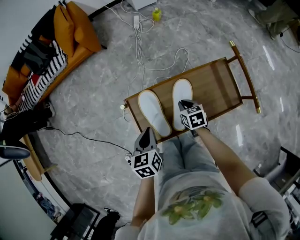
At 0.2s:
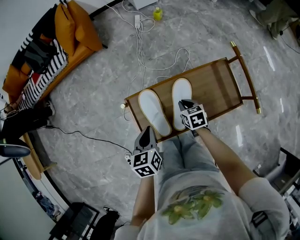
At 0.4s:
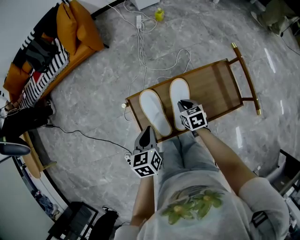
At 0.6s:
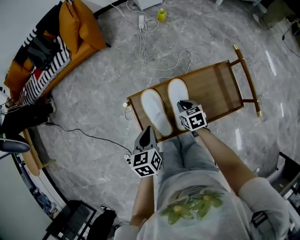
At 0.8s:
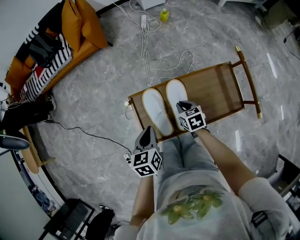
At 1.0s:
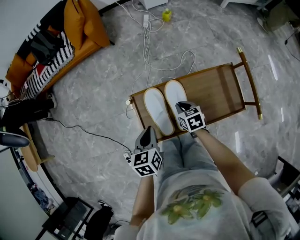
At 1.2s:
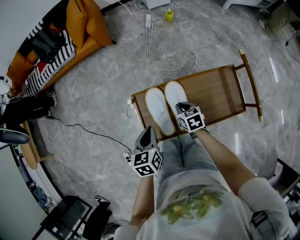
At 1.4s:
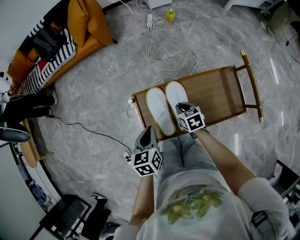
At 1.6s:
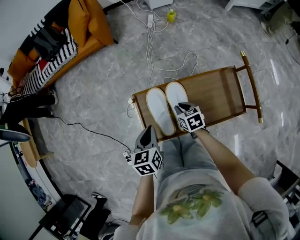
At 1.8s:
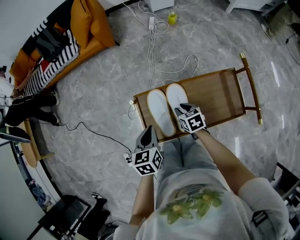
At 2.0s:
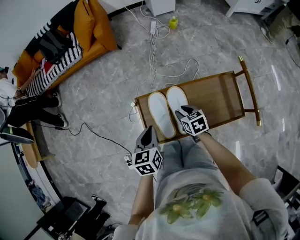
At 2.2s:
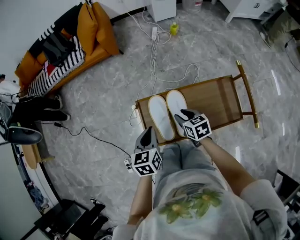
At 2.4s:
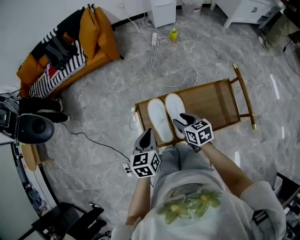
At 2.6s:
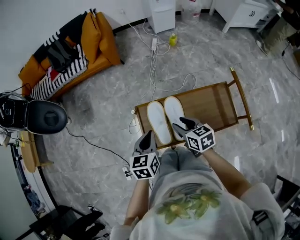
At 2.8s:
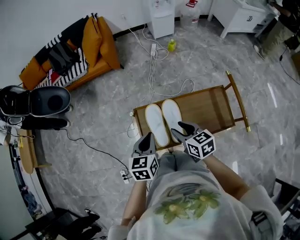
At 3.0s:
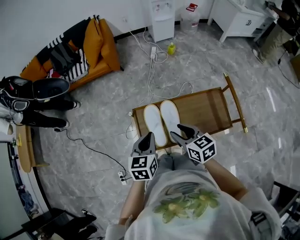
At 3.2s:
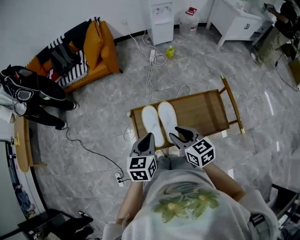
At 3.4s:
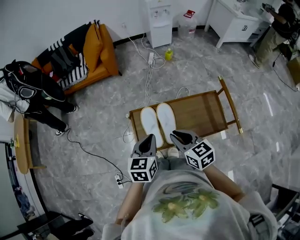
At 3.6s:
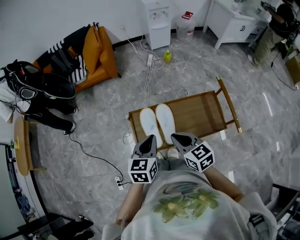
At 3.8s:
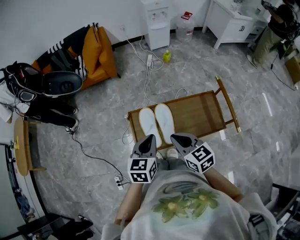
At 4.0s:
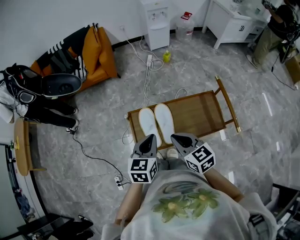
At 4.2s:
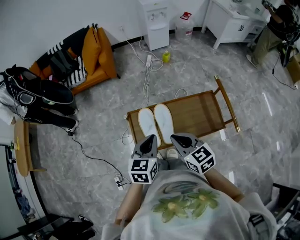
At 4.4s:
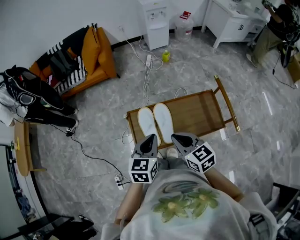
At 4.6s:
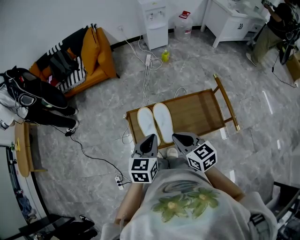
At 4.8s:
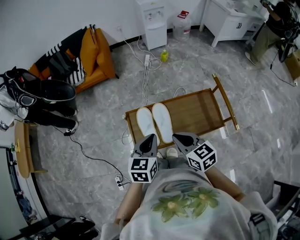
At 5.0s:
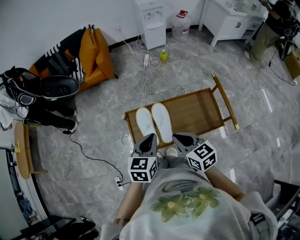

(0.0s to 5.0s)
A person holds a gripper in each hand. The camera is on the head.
0.0s - 1.6s: The right gripper is displaced to the left by approximately 5 cm.
1.6s - 3.4s: The left gripper travels upward and to the right by approximately 15 cm. Meanwhile the right gripper moves upward, about 25 cm, swivels approximately 30 degrees, and opens, then closes once more.
3.4s - 5.0s: The grippers move only a little.

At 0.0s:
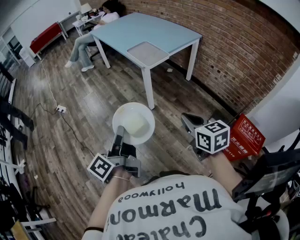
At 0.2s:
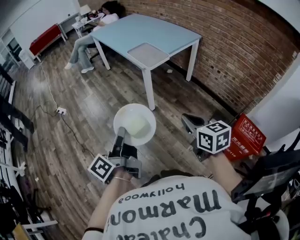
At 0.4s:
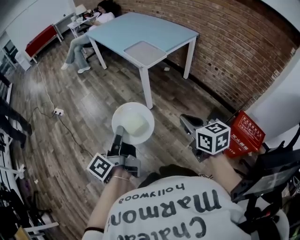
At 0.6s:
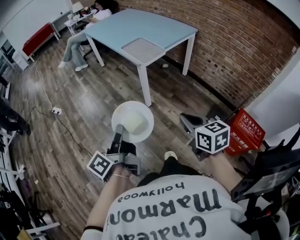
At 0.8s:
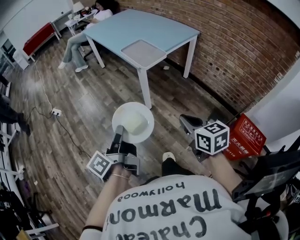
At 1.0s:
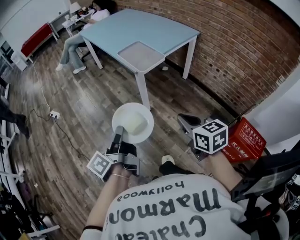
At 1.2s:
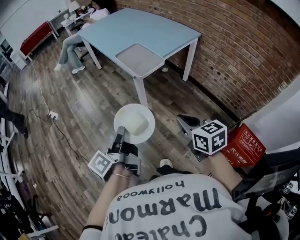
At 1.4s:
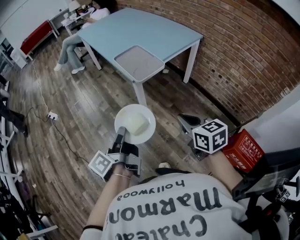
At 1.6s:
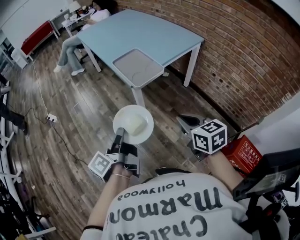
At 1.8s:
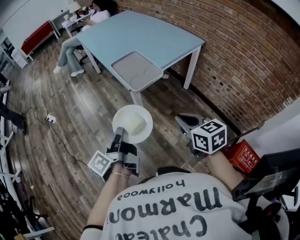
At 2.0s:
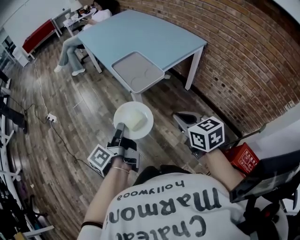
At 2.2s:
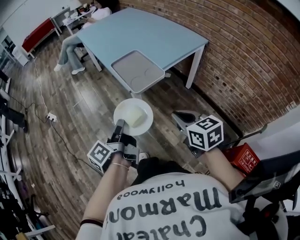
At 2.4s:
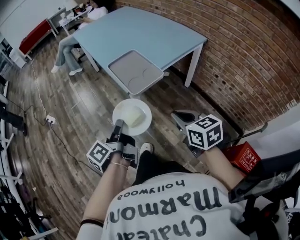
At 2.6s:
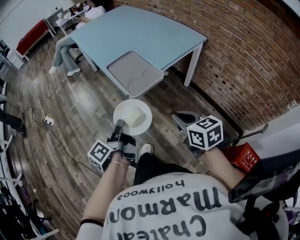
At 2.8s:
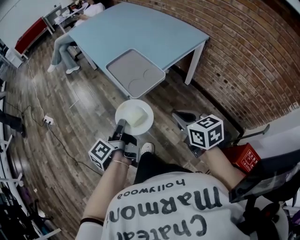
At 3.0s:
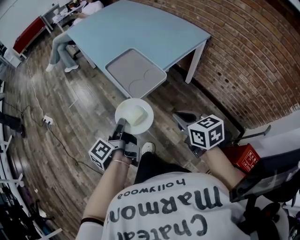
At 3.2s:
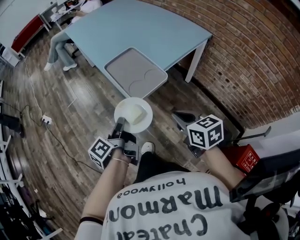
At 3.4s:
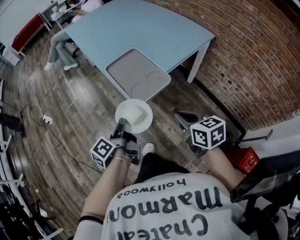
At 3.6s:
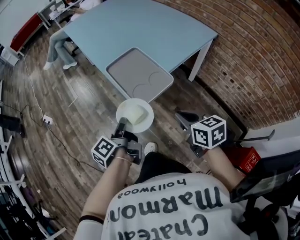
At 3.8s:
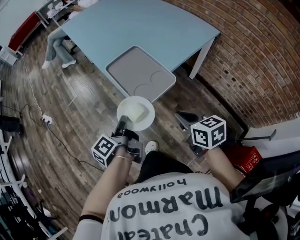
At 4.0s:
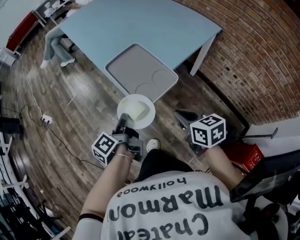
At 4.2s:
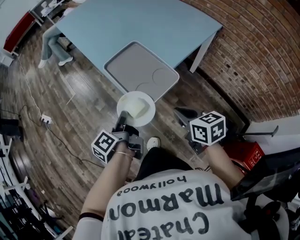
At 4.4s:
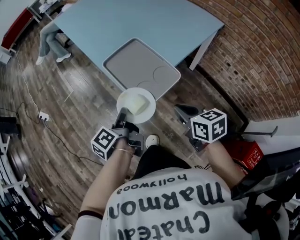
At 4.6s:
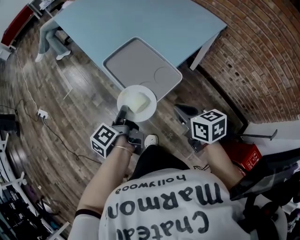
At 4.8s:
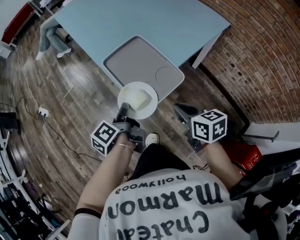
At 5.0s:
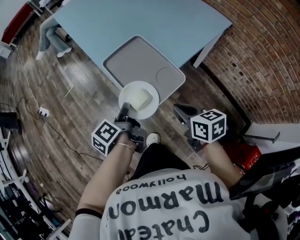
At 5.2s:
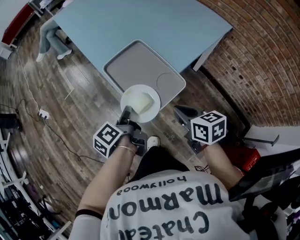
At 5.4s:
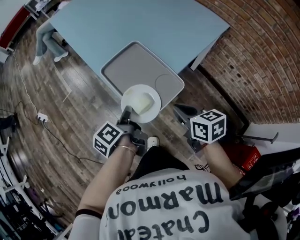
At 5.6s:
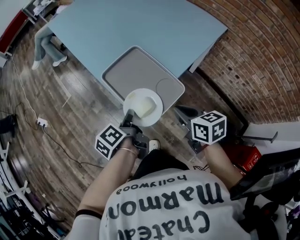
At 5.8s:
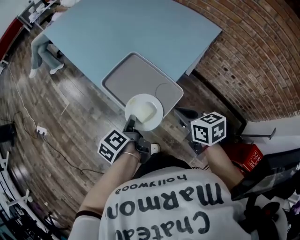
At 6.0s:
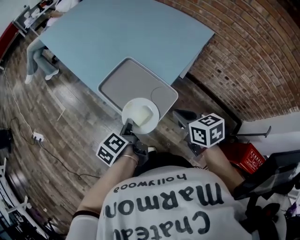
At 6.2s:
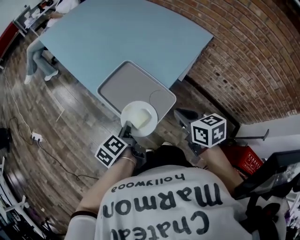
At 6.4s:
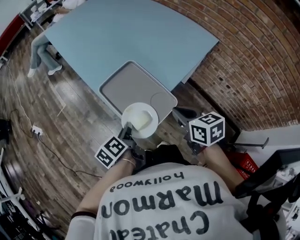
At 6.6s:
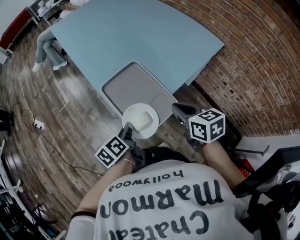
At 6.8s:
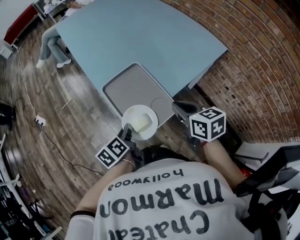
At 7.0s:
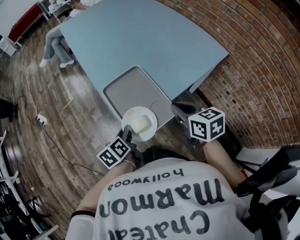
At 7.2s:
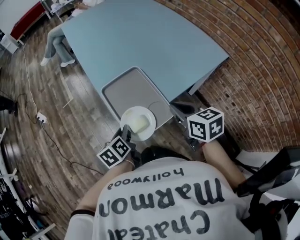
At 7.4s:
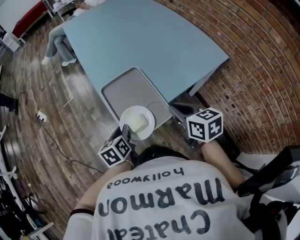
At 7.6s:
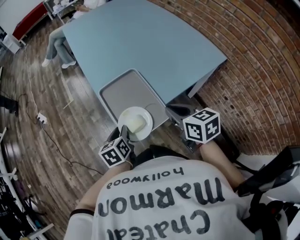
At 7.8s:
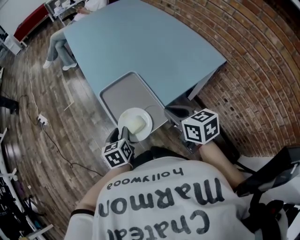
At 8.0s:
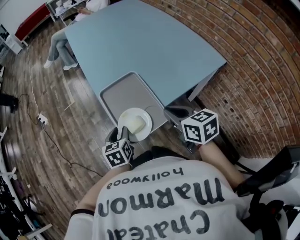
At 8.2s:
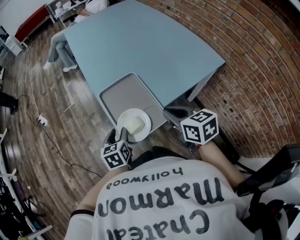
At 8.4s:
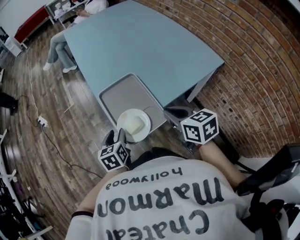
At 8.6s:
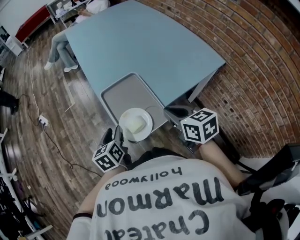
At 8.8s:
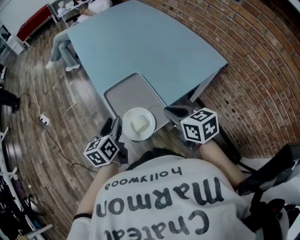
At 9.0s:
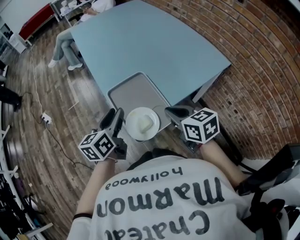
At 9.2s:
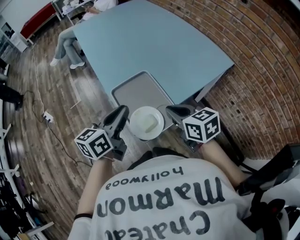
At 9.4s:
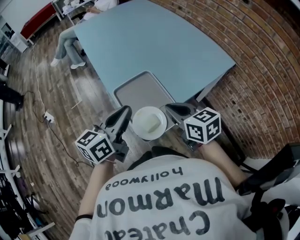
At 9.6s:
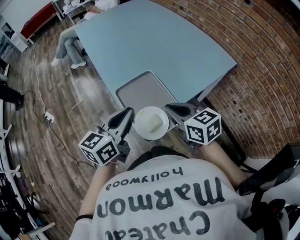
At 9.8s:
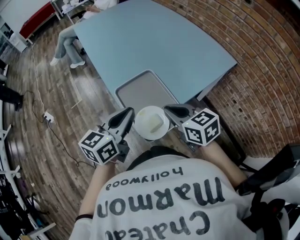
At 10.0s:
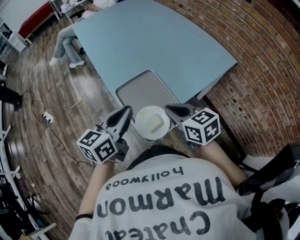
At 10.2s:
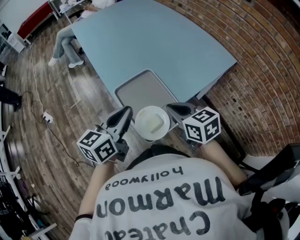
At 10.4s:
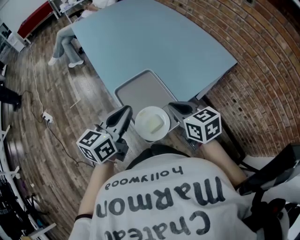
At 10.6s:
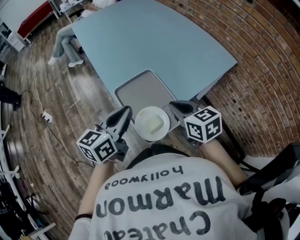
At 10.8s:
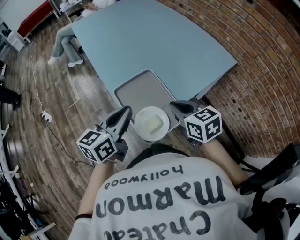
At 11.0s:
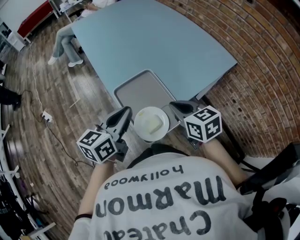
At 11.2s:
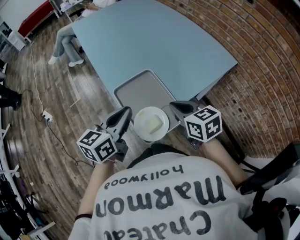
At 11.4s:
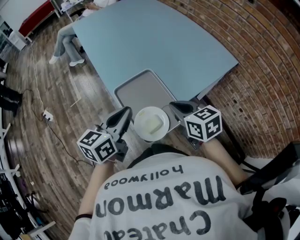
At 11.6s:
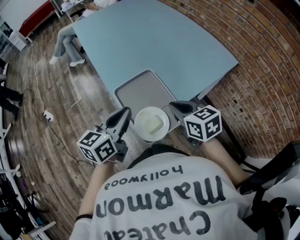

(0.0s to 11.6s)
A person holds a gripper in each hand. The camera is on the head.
0.0s - 1.4s: Both grippers move forward and to the right, roughly 20 cm.
1.4s - 2.8s: Both grippers move forward, about 15 cm.
2.8s - 4.4s: Both grippers move forward and downward, roughly 15 cm.
4.4s - 5.8s: The two grippers go approximately 5 cm forward.
5.8s - 7.2s: The right gripper is displaced forward and upward by roughly 10 cm. Meanwhile the left gripper changes its angle by approximately 30 degrees.
7.2s - 8.8s: The left gripper goes roughly 10 cm upward, turns by approximately 20 degrees, and opens up.
8.8s - 10.2s: The left gripper is displaced upward by roughly 10 cm, changes its angle by approximately 30 degrees, and closes up. Meanwhile the right gripper goes some 5 cm to the left.
10.2s - 11.6s: The grippers stay close to where they were, moving slightly.

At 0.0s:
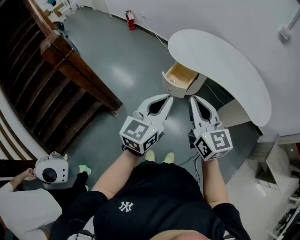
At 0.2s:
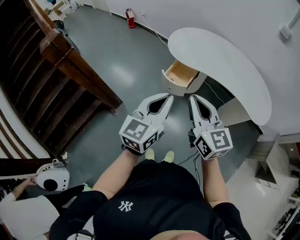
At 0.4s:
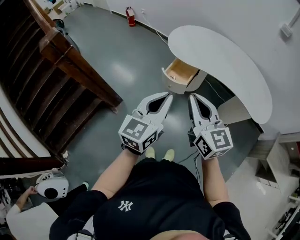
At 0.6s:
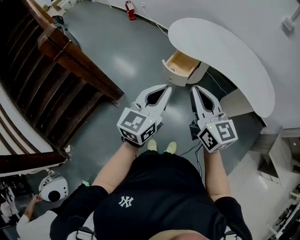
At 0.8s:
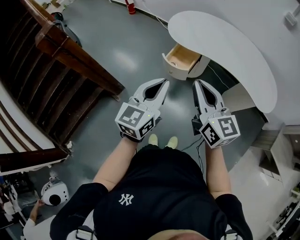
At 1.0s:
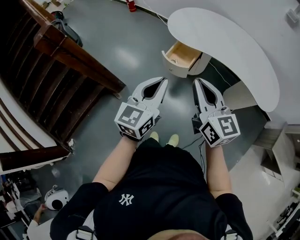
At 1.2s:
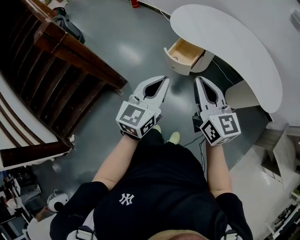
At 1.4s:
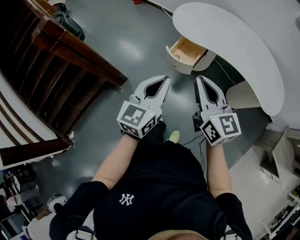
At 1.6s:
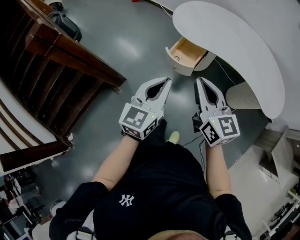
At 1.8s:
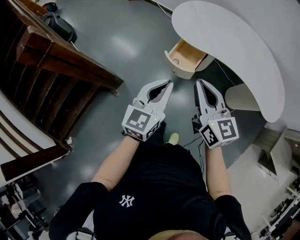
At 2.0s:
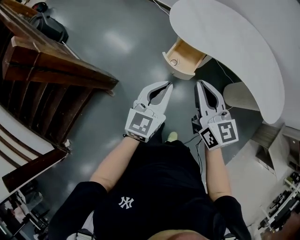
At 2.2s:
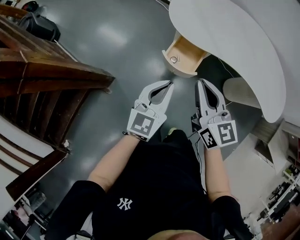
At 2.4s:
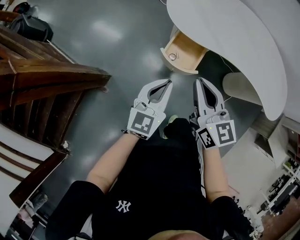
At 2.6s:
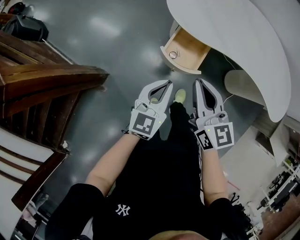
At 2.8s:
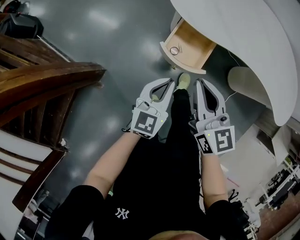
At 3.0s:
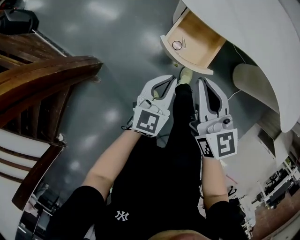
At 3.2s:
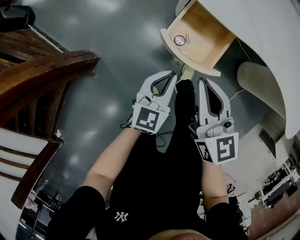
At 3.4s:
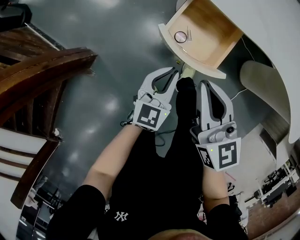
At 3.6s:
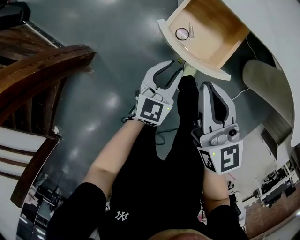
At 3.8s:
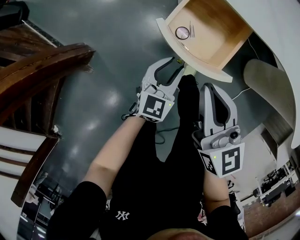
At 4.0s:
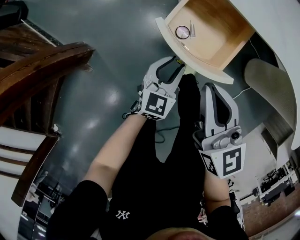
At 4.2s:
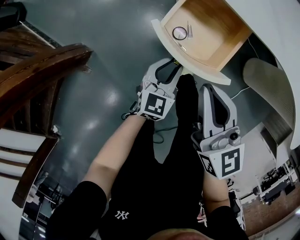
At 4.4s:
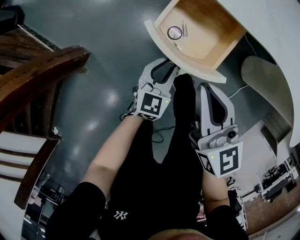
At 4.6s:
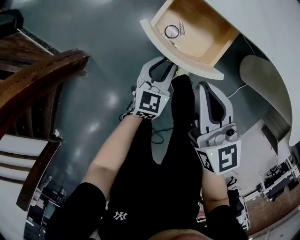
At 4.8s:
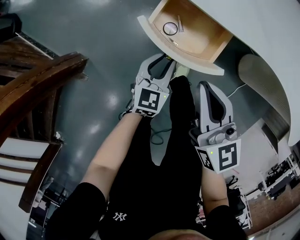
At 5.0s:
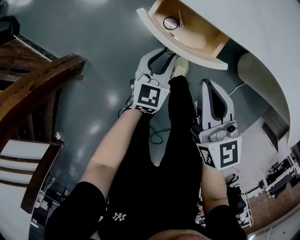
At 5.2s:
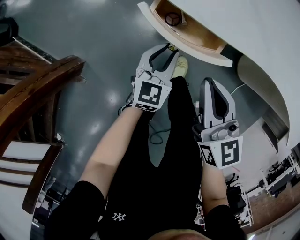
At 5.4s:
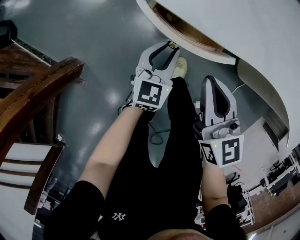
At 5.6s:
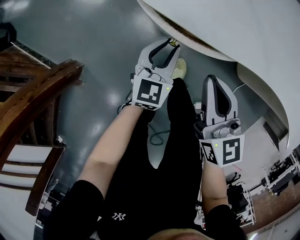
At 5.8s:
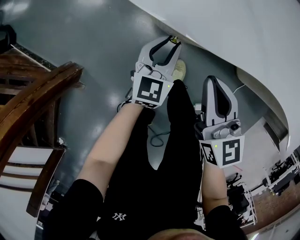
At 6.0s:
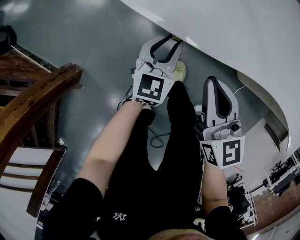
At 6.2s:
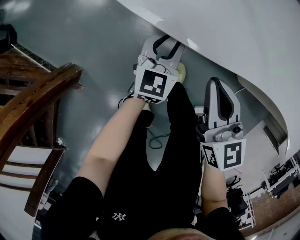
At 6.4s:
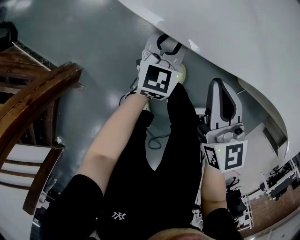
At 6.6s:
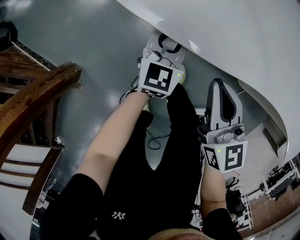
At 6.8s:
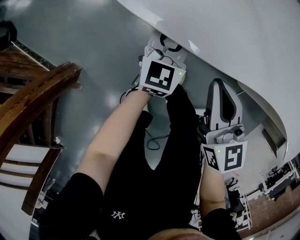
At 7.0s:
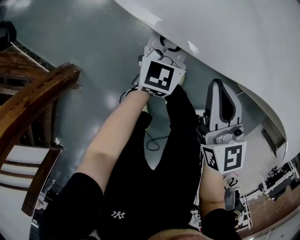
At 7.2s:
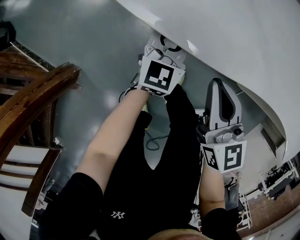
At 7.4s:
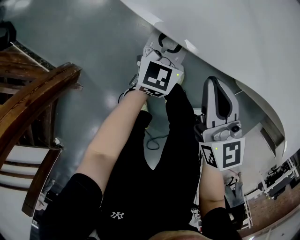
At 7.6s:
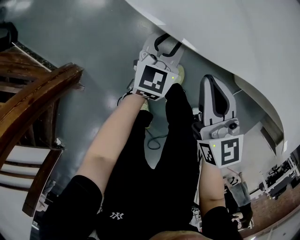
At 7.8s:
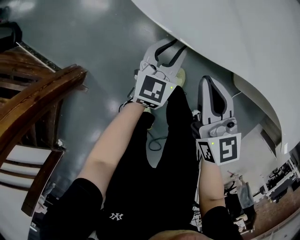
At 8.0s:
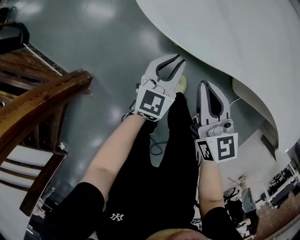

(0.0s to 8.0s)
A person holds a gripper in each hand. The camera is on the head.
0.0s - 1.6s: The right gripper shifts roughly 10 cm forward and downward, while the left gripper is displaced downward and forward by some 10 cm.
1.6s - 3.2s: Both grippers move downward and forward, some 40 cm.
3.2s - 4.8s: The right gripper travels downward and to the right by about 10 cm. Meanwhile the left gripper travels downward and forward by roughly 15 cm, and opens.
4.8s - 6.4s: The right gripper goes roughly 10 cm forward and to the right, while the left gripper heads forward and to the right, covering roughly 15 cm.
6.4s - 8.0s: The right gripper goes some 5 cm upward. The left gripper goes approximately 10 cm upward and backward.
